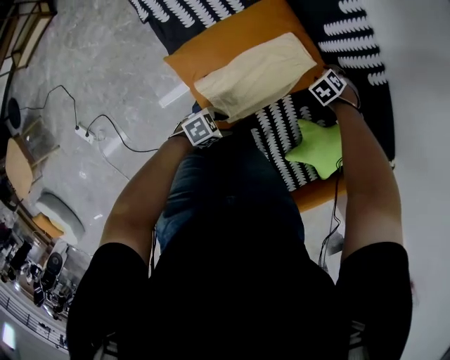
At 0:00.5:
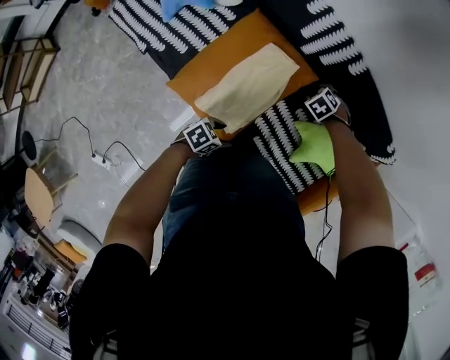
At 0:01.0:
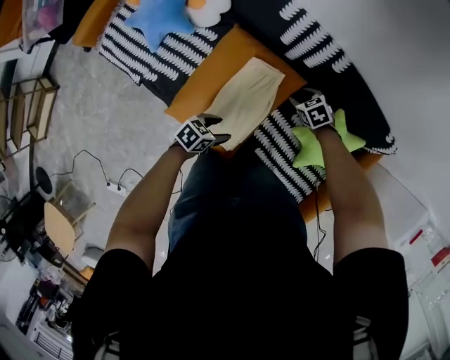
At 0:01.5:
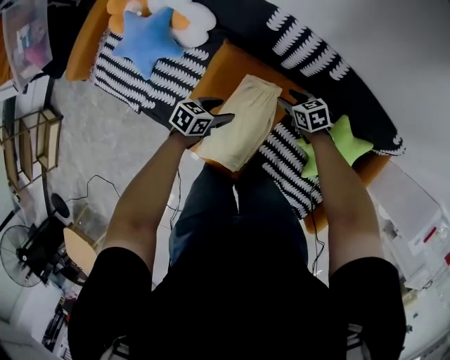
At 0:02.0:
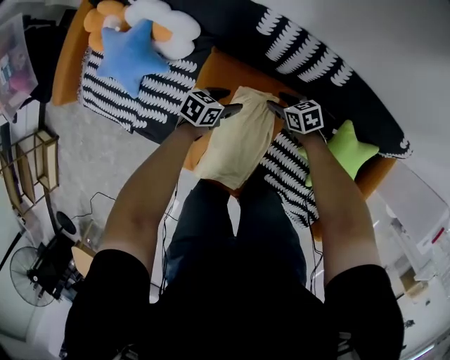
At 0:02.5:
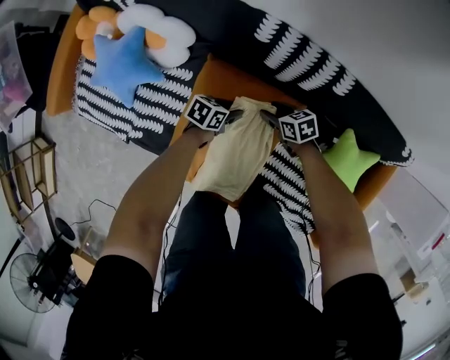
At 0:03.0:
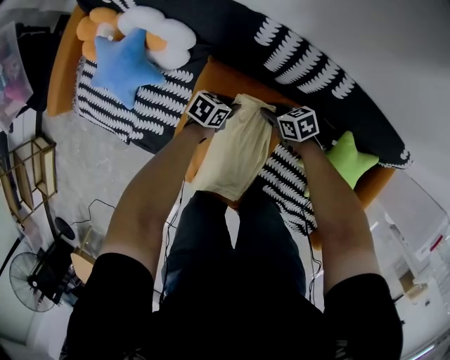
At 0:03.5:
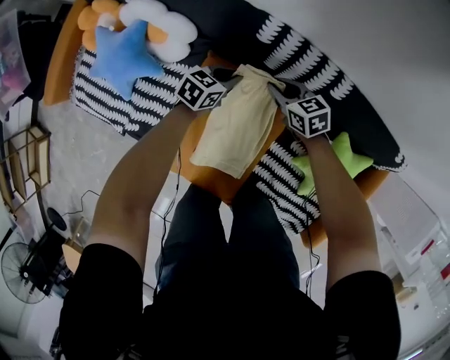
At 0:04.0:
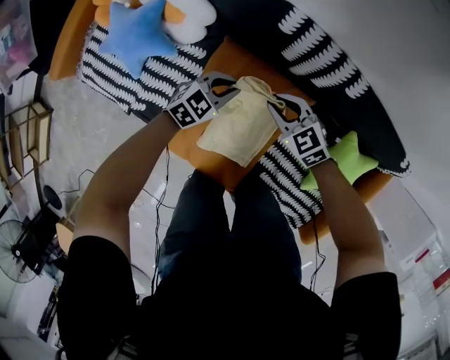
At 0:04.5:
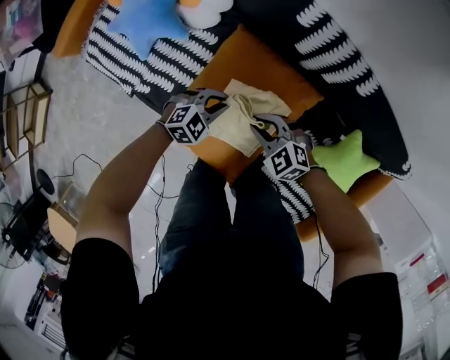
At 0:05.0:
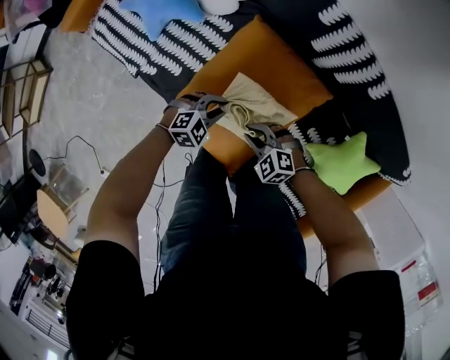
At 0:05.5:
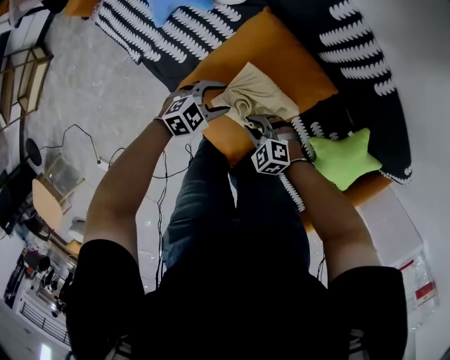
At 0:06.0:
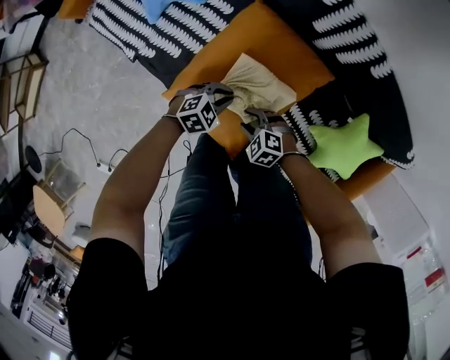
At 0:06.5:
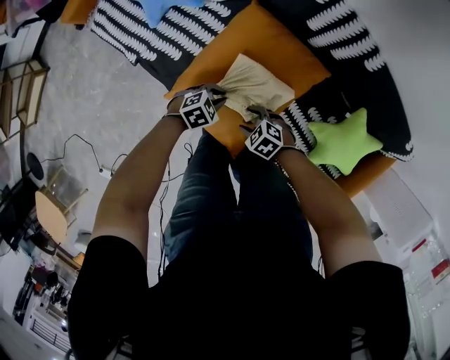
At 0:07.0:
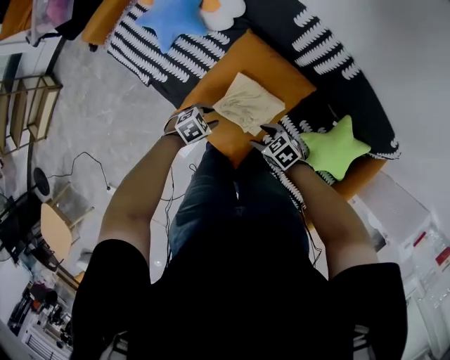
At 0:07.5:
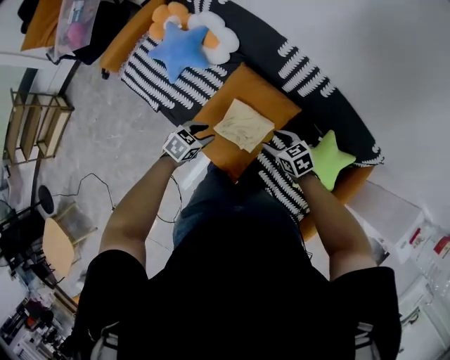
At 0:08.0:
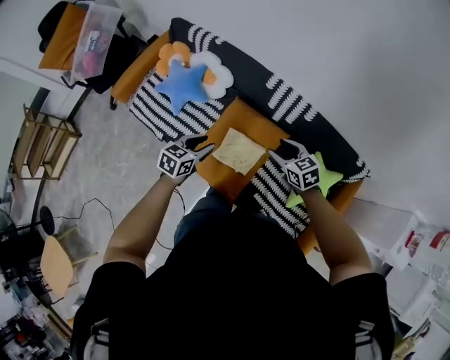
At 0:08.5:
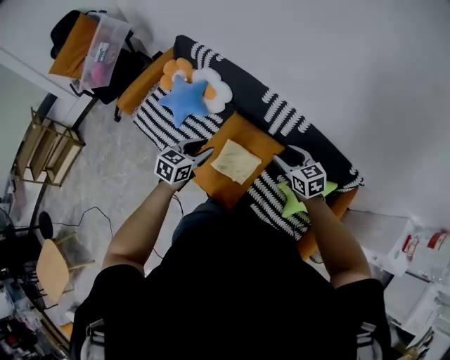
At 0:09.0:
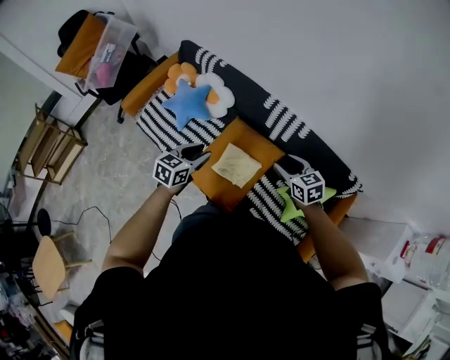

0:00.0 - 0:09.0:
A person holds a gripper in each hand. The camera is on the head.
0:00.0 - 0:02.0: The left gripper goes upward and returns, roughly 10 cm each way, while the right gripper moves some 5 cm upward and comes back, and twists some 70 degrees clockwise, seen from behind.
0:02.0 - 0:04.5: The right gripper shifts by some 20 cm, rolls counterclockwise, seen from behind, by roughly 50 degrees, and closes; the left gripper reaches about 5 cm downward, then returns, twists some 40 degrees clockwise, seen from behind, and closes up.
0:04.5 - 0:07.0: The right gripper moves some 10 cm downward and comes back, swivels some 30 degrees, and opens up, while the left gripper moves approximately 5 cm downward and comes back, changes its angle by approximately 30 degrees, and opens its fingers.
0:07.0 - 0:09.0: The two grippers go approximately 35 cm upward. The right gripper turns by roughly 40 degrees, while the left gripper tips its fingers upward by some 30 degrees.

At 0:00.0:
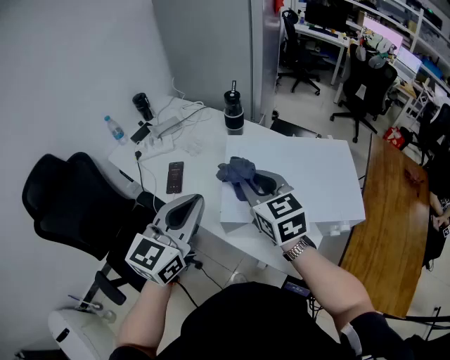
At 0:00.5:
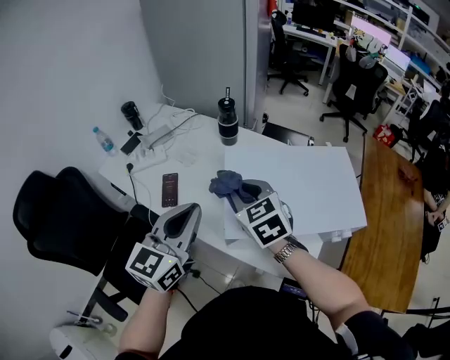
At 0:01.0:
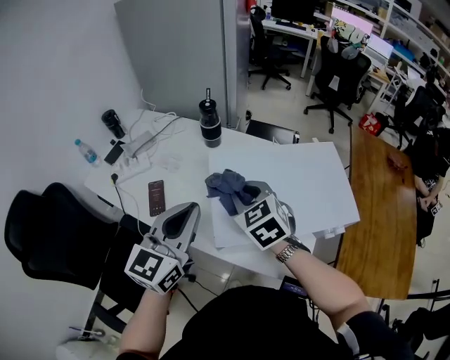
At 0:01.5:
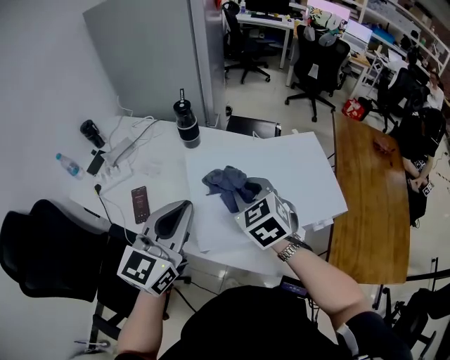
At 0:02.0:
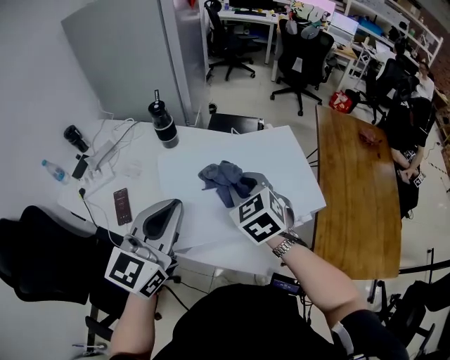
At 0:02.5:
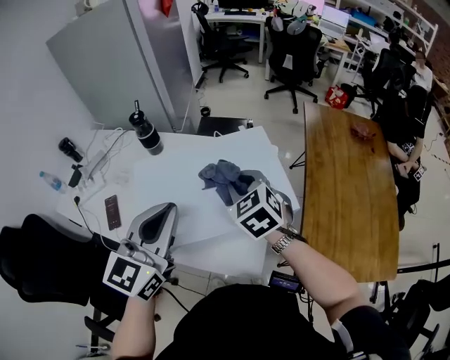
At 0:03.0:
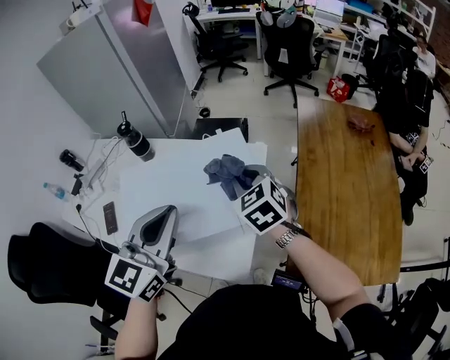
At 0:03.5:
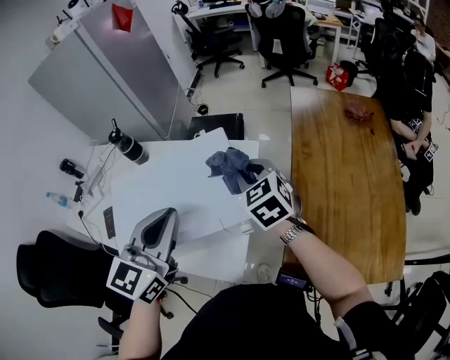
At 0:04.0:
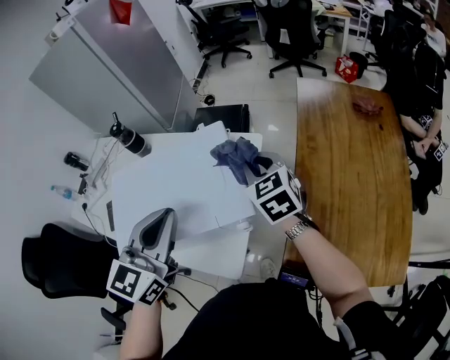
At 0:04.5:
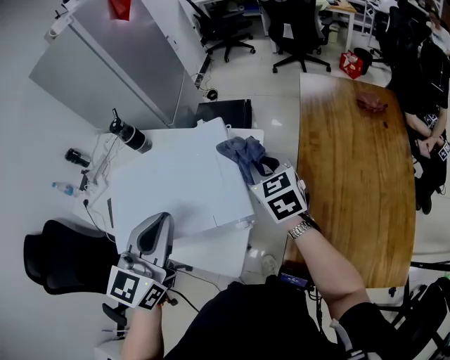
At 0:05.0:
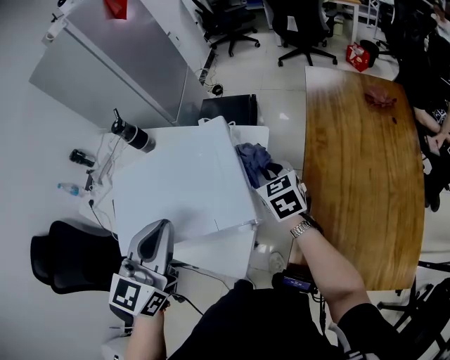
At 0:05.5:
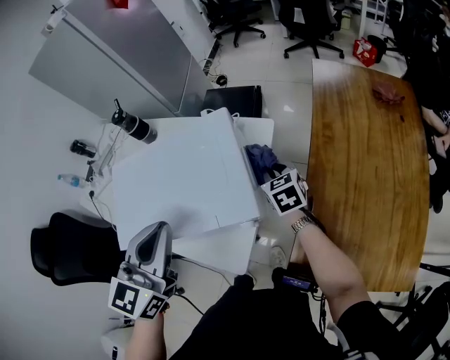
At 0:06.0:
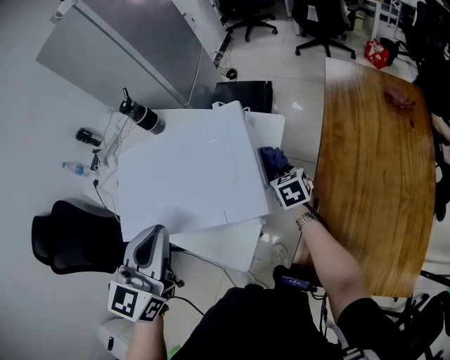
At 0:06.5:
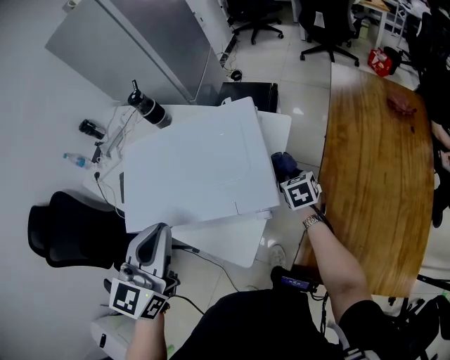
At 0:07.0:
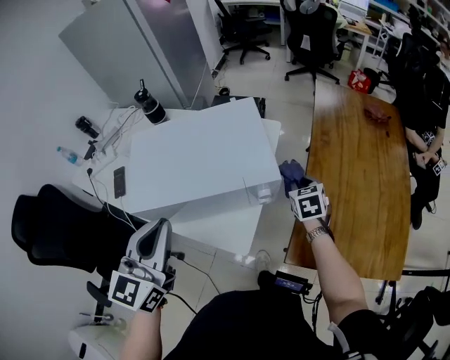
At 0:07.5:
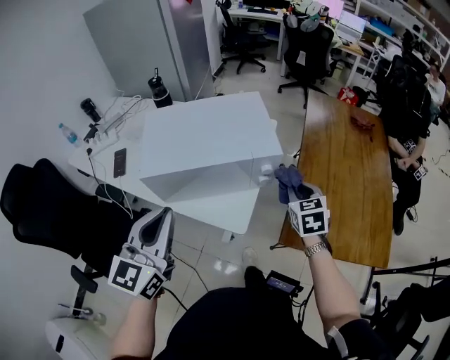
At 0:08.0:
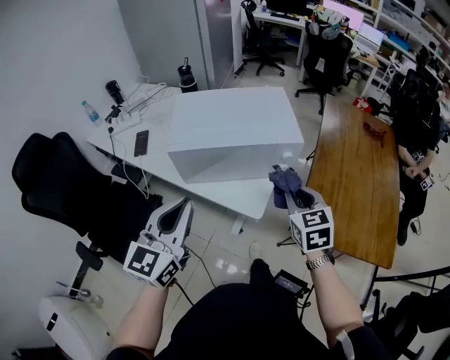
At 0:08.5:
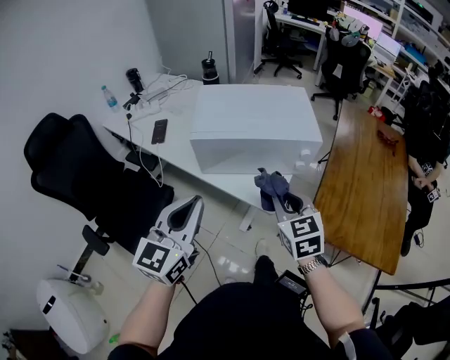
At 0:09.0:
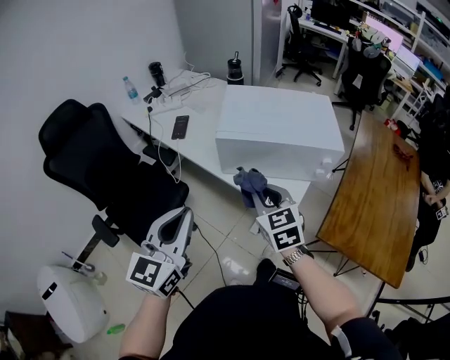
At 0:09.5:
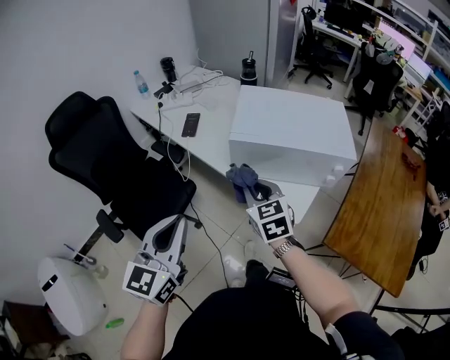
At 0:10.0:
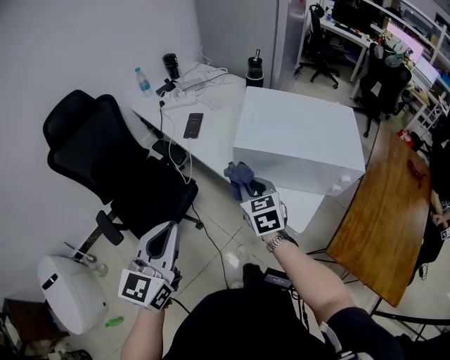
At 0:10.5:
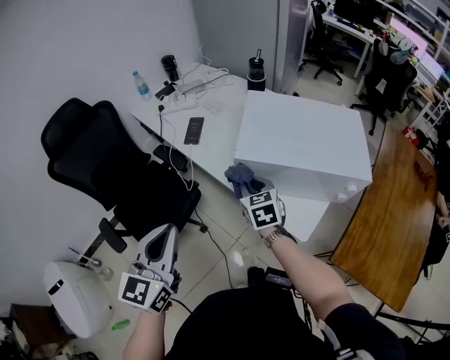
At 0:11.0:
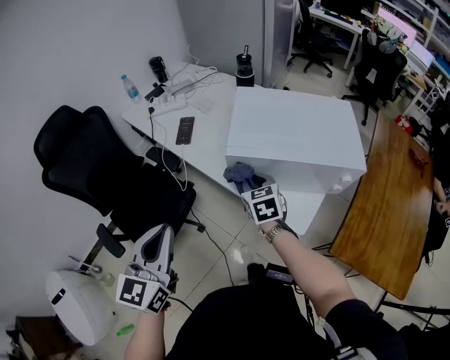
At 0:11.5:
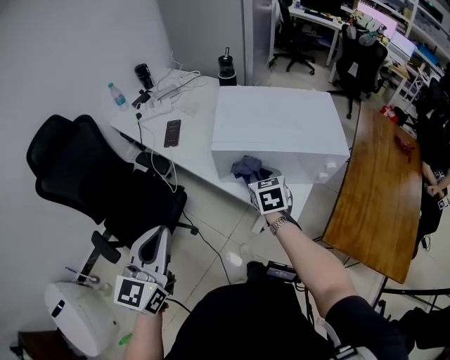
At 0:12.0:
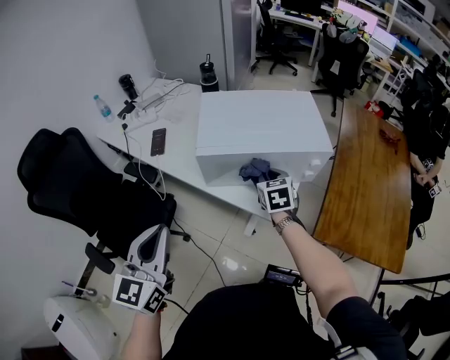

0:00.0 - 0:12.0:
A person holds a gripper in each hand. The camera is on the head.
0:00.0 - 0:02.0: The left gripper heads to the right and forward, covering roughly 10 cm; the right gripper travels to the right, downward and forward by roughly 15 cm, and changes its angle by about 30 degrees.
0:02.0 - 0:04.0: Both grippers move to the right, roughly 25 cm.
0:04.0 - 0:06.0: The right gripper shifts roughly 20 cm downward, and turns by roughly 20 degrees. The left gripper changes place by about 5 cm.
0:06.0 - 0:08.0: The left gripper travels backward and to the left by some 25 cm, while the right gripper is displaced backward and upward by roughly 40 cm, and turns by approximately 20 degrees.
0:08.0 - 0:10.0: The left gripper is displaced to the left by approximately 20 cm, and changes its angle by approximately 20 degrees. Meanwhile the right gripper heads to the left, covering about 30 cm, and swivels some 20 degrees.
0:10.0 - 0:12.0: The right gripper shifts some 15 cm to the right, and changes its angle by some 20 degrees.

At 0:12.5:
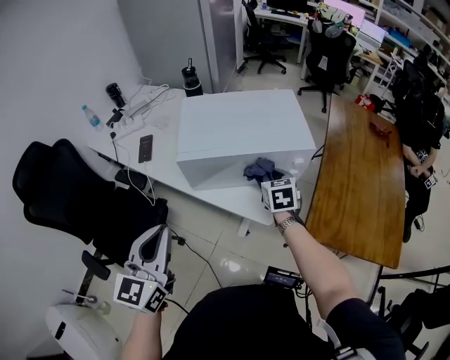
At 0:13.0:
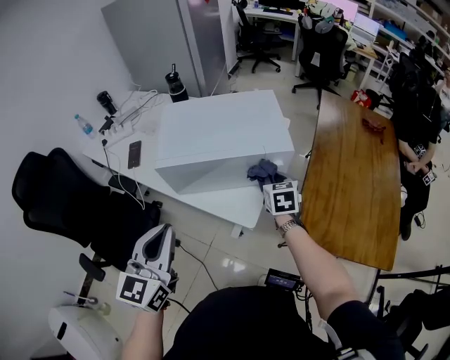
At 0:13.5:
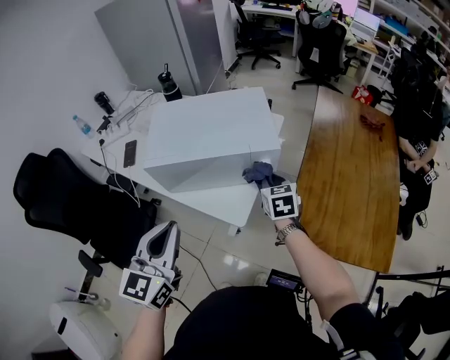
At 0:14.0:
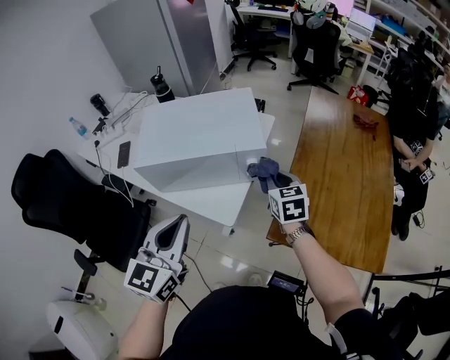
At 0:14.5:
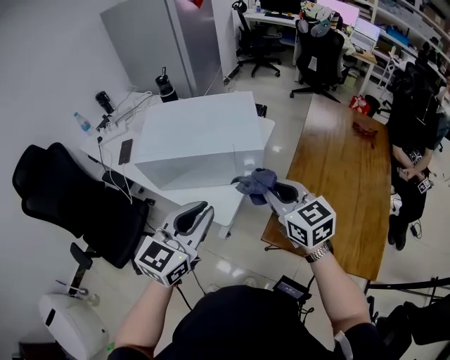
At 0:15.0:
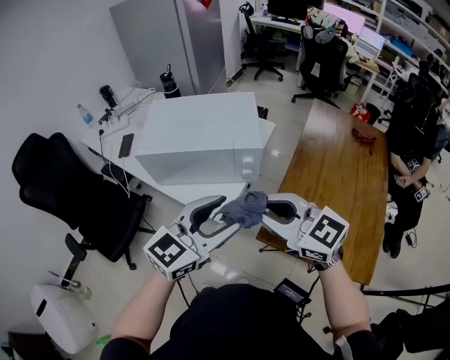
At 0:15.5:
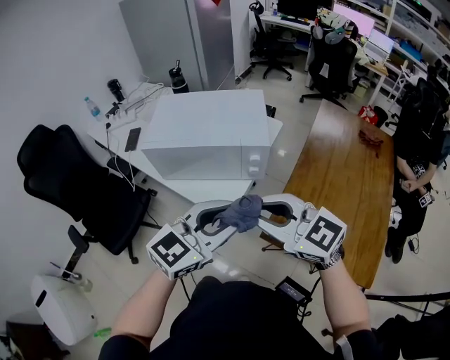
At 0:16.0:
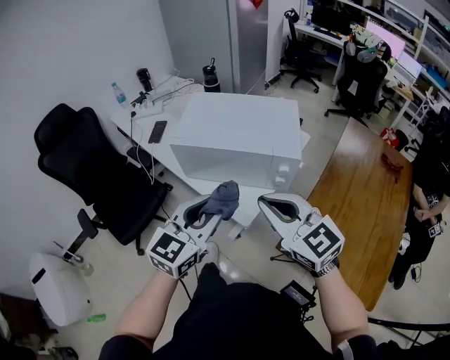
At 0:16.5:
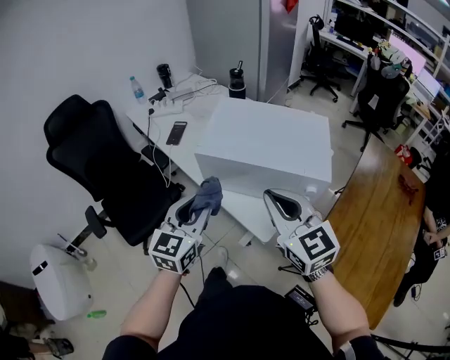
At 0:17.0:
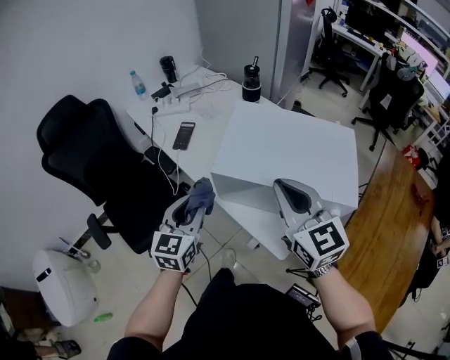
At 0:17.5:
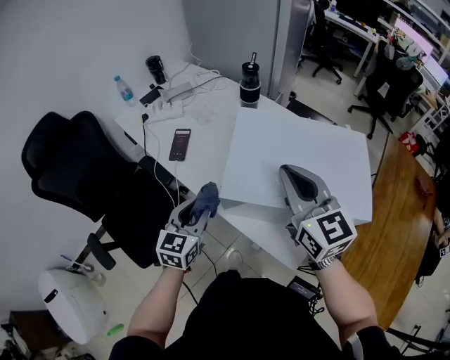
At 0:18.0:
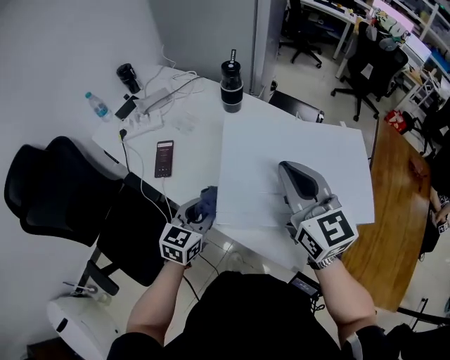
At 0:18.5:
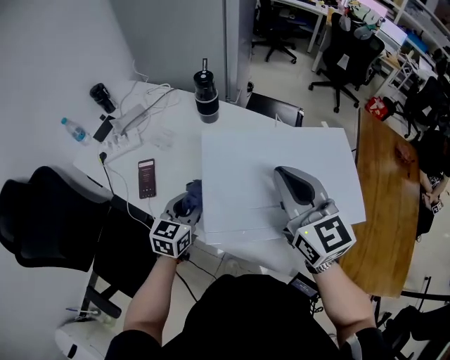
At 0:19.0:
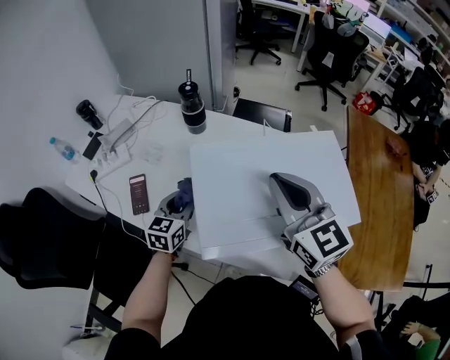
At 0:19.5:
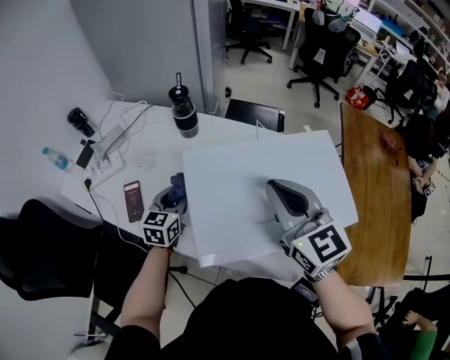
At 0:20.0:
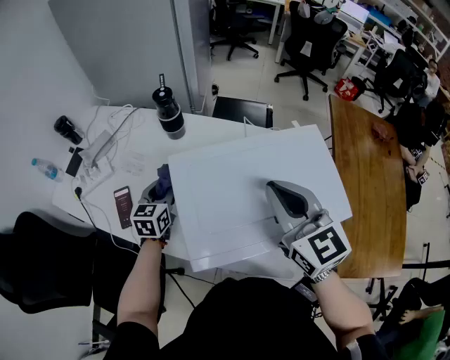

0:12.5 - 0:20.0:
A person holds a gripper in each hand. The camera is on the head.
0:12.5 - 0:14.5: The right gripper heads to the right, upward and backward, covering about 25 cm, and rotates approximately 30 degrees, while the left gripper travels to the right by approximately 30 cm.
0:14.5 - 0:16.5: The right gripper shifts approximately 20 cm to the left. Meanwhile the left gripper heads to the left and forward, covering about 20 cm, swivels some 30 degrees, and opens, then closes again.
0:16.5 - 0:18.0: The right gripper is displaced forward by roughly 25 cm, while the left gripper travels forward and downward by about 30 cm, and swivels approximately 20 degrees.
0:18.0 - 0:20.0: The left gripper heads forward, covering roughly 20 cm; the right gripper shifts about 5 cm to the right.
